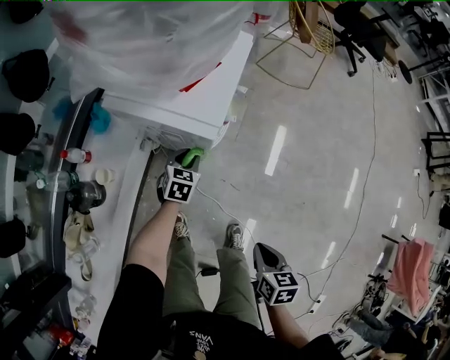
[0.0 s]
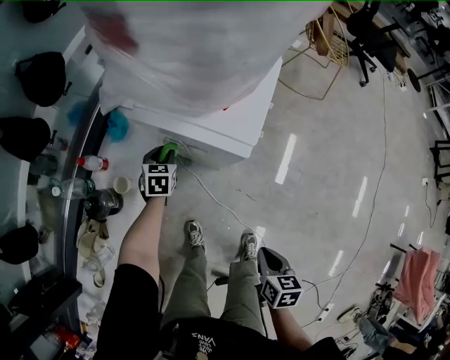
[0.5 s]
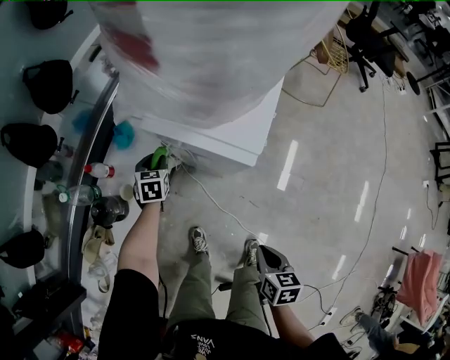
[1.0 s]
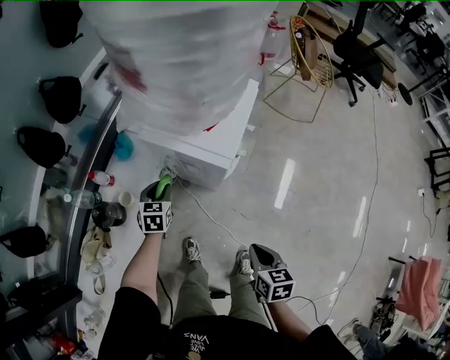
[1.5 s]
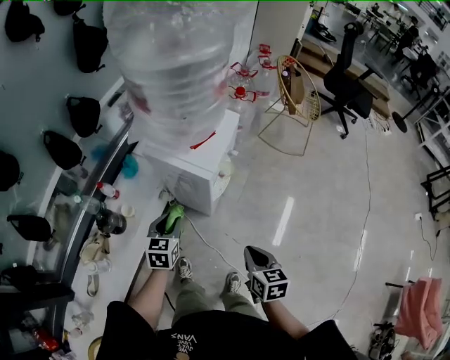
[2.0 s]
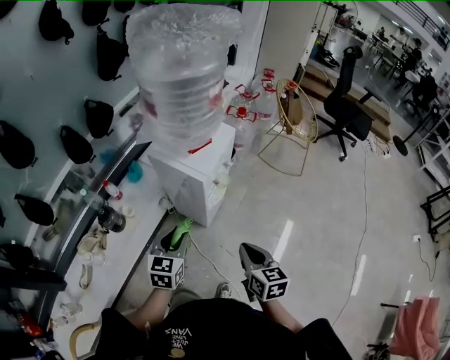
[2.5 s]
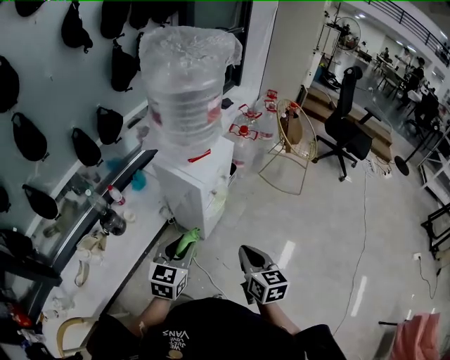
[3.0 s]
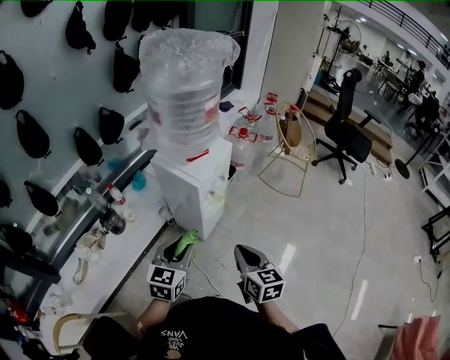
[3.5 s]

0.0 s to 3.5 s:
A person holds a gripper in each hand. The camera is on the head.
0.0 to 2.0 s: The right gripper is displaced upward and forward by approximately 15 cm, and swivels roughly 20 degrees, while the left gripper heads upward, backward and to the left, covering approximately 25 cm, and rotates approximately 20 degrees.
2.0 to 3.5 s: The right gripper heads upward, covering about 10 cm, and rotates about 20 degrees; the left gripper shifts about 25 cm backward, upward and to the right.

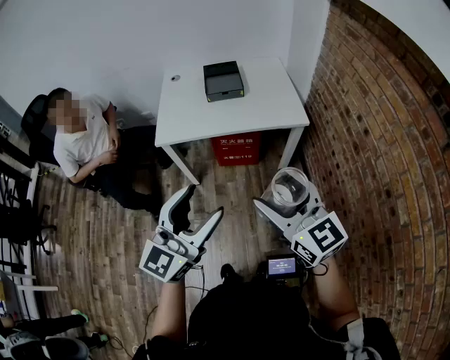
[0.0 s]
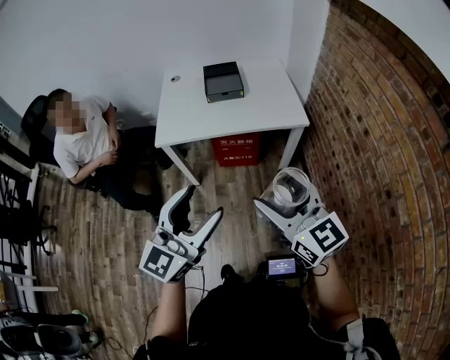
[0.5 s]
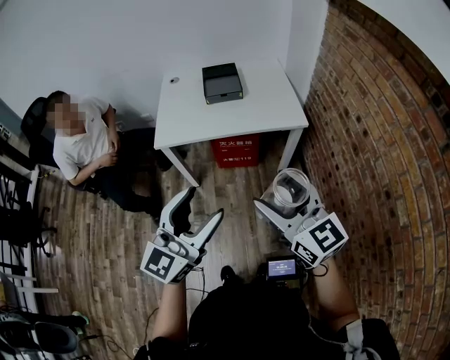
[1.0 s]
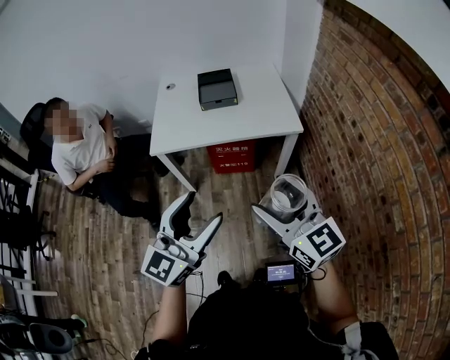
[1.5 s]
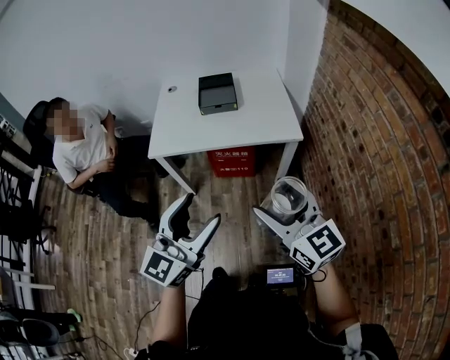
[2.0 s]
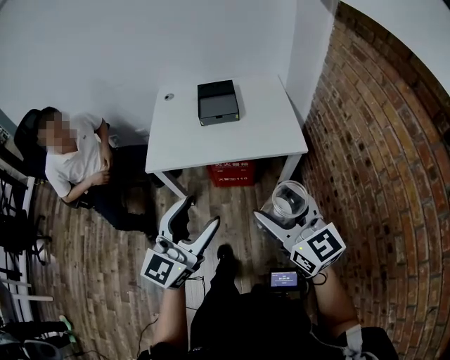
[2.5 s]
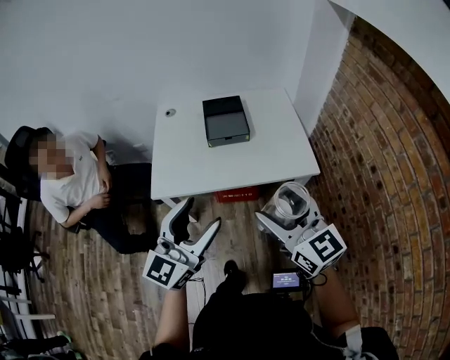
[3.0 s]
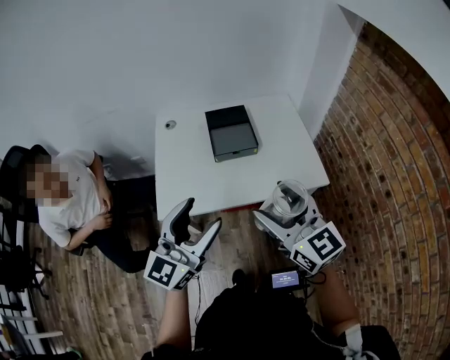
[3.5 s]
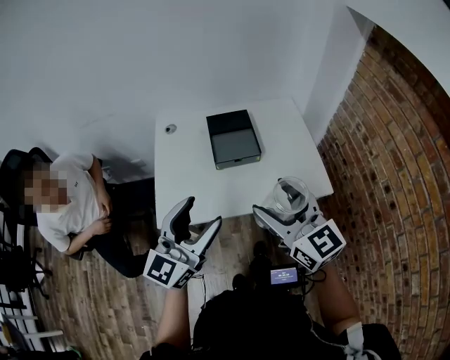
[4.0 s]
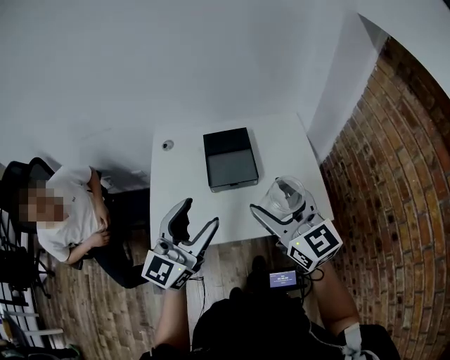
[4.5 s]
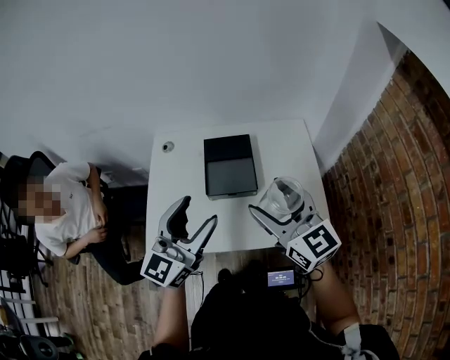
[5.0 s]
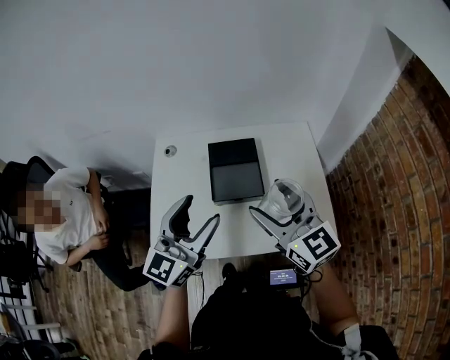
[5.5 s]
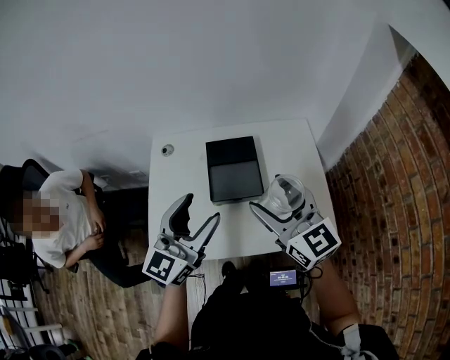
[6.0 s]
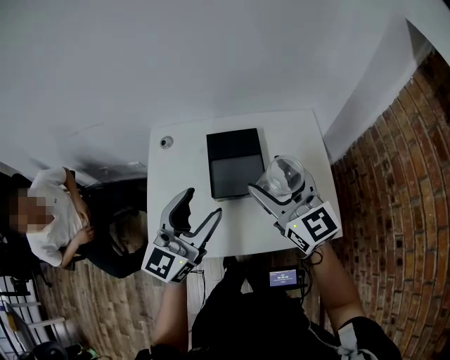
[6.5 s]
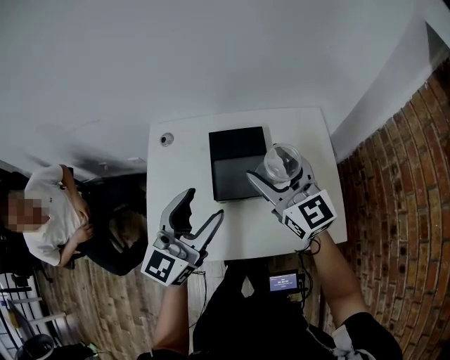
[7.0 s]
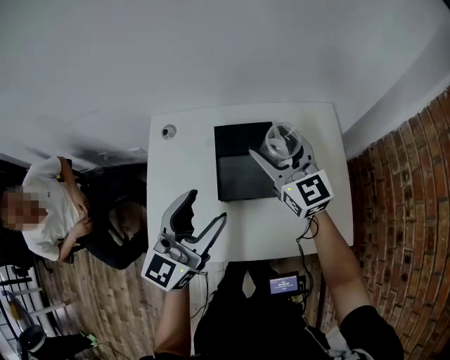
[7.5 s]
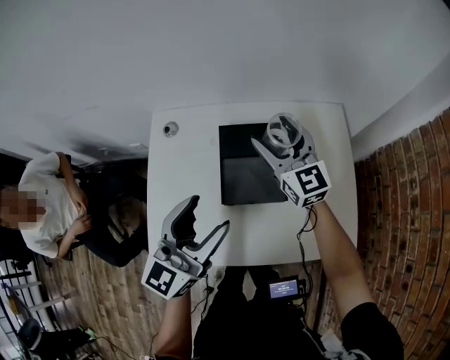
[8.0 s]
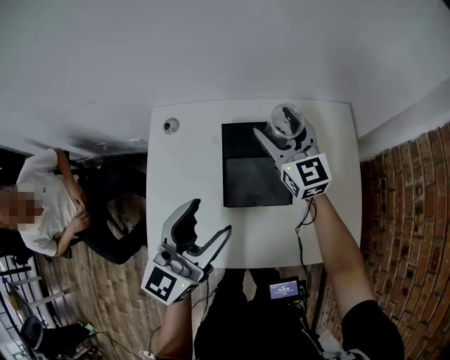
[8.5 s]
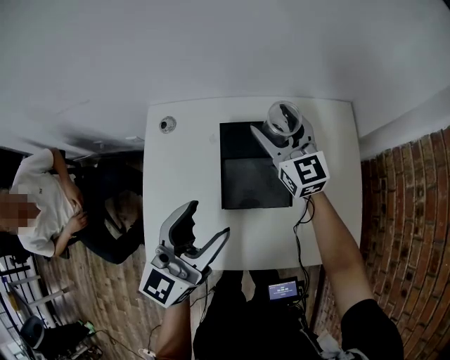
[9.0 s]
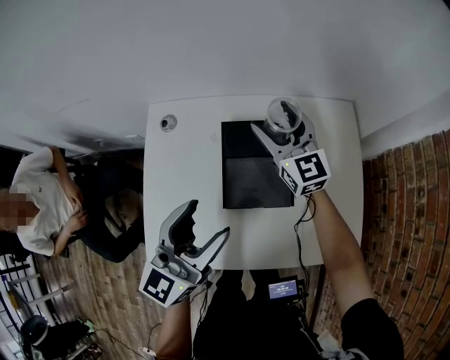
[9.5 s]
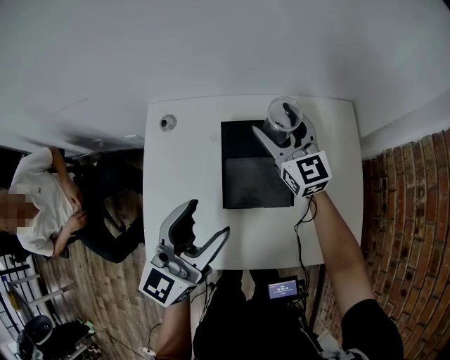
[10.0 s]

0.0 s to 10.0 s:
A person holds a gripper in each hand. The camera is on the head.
0.0 to 2.0 s: The two grippers go some 5 cm to the right.
2.0 to 4.0 s: The two grippers go some 35 cm forward and to the left.
4.0 to 6.0 s: The two grippers go about 20 cm forward.
6.0 to 8.0 s: The left gripper is displaced forward and downward by about 10 cm. The right gripper goes about 25 cm forward and downward.
8.0 to 10.0 s: The right gripper ends up roughly 5 cm from where it was.

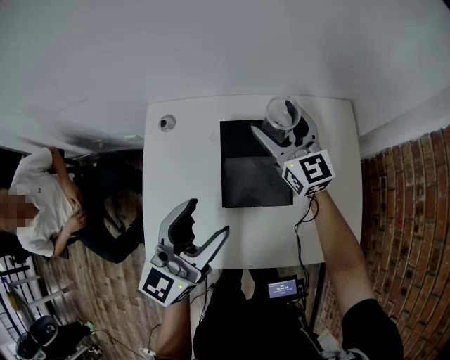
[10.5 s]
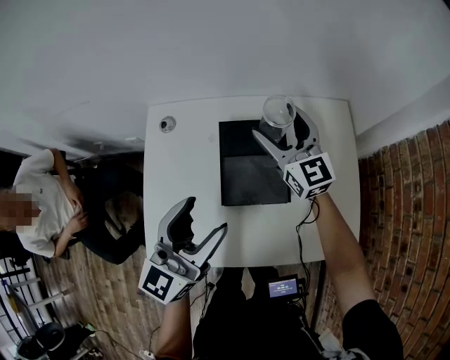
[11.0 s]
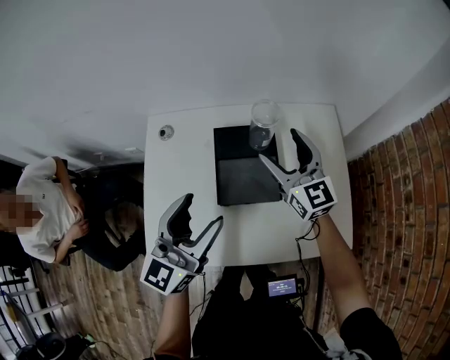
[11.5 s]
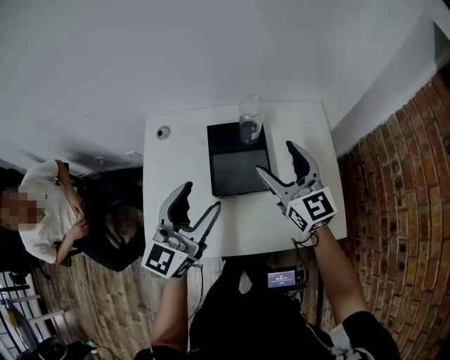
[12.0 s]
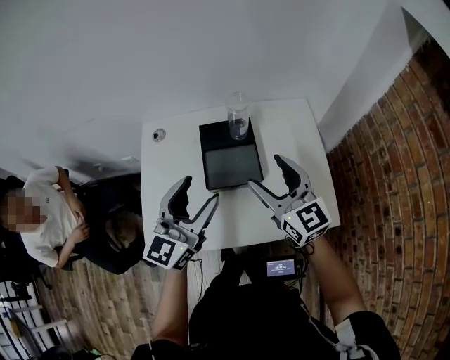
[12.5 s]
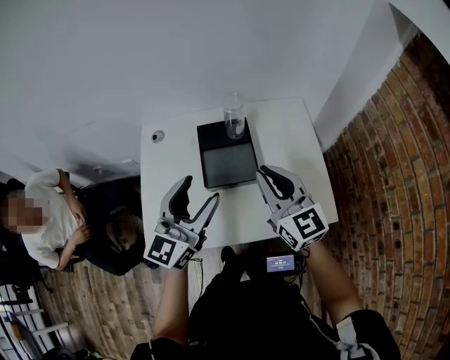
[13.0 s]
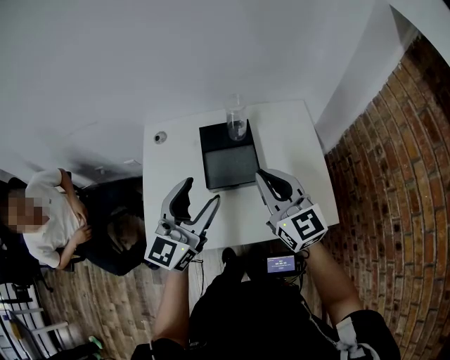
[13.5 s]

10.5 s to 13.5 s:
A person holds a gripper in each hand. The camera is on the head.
10.5 to 12.0 s: The right gripper shifts roughly 15 cm backward.
12.0 to 13.5 s: The right gripper heads backward, covering roughly 10 cm, and closes up.

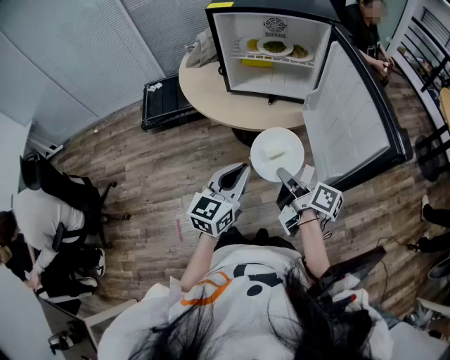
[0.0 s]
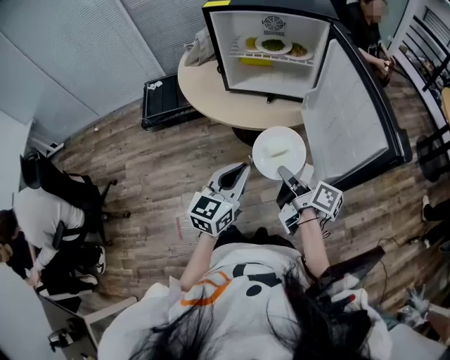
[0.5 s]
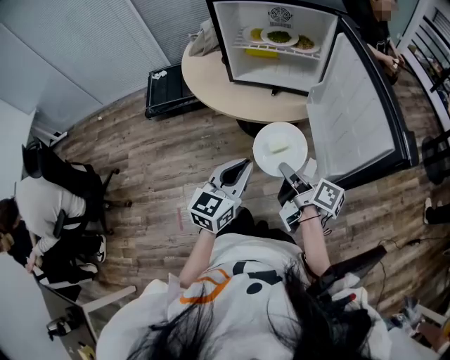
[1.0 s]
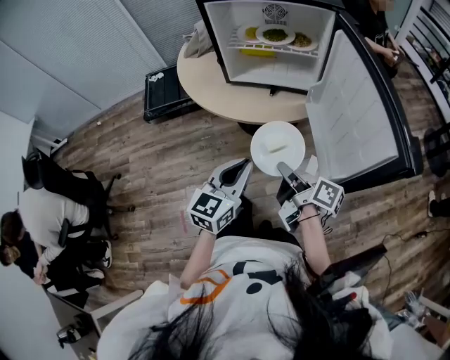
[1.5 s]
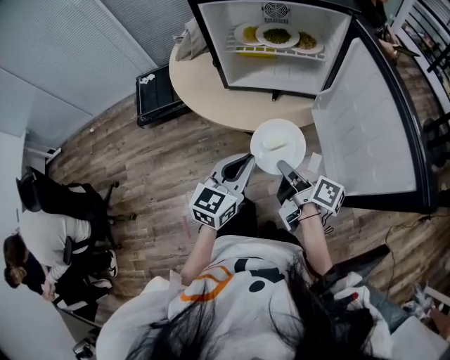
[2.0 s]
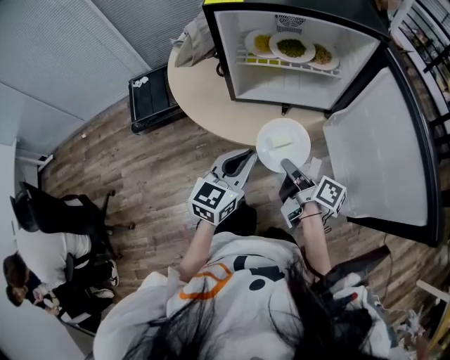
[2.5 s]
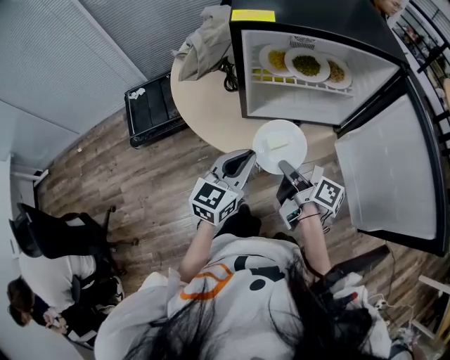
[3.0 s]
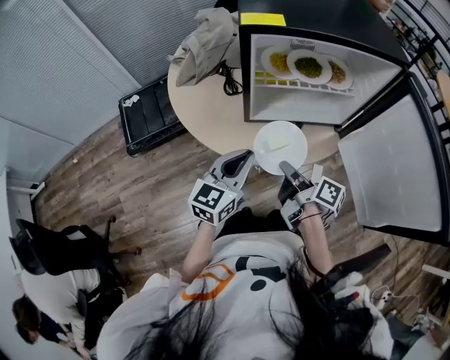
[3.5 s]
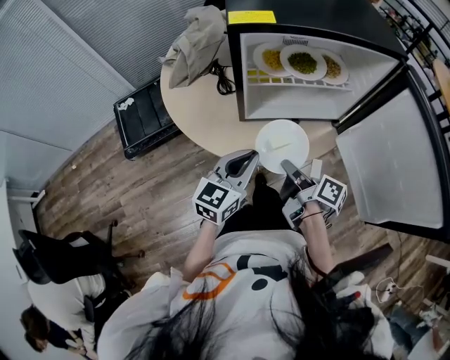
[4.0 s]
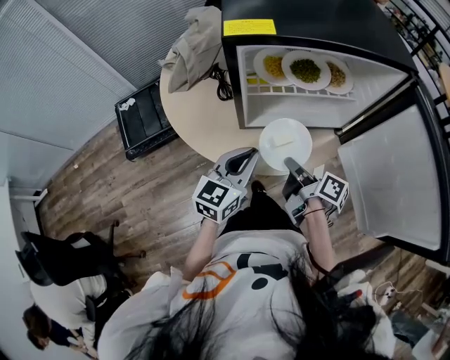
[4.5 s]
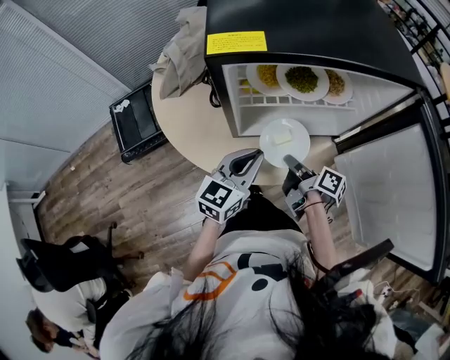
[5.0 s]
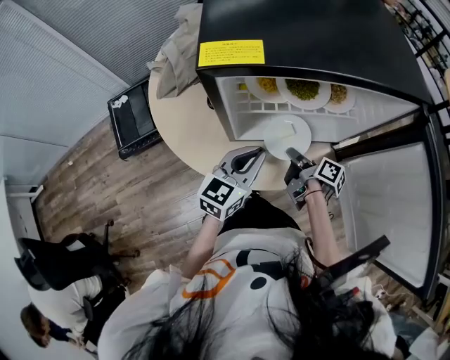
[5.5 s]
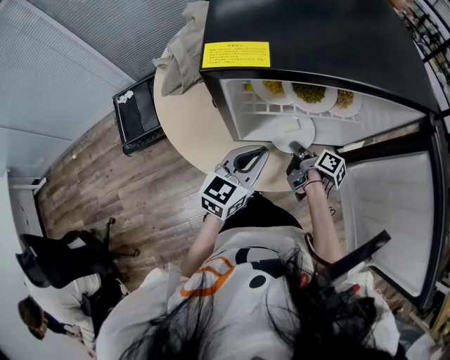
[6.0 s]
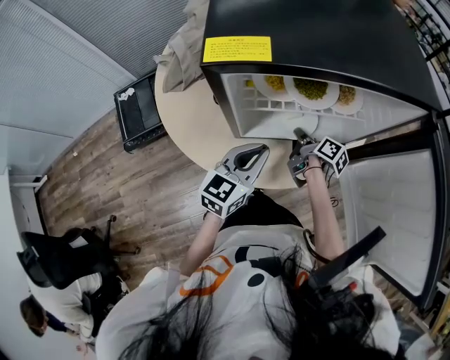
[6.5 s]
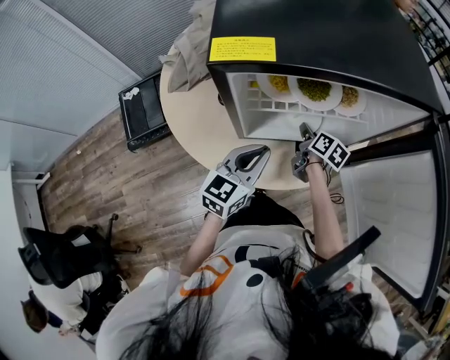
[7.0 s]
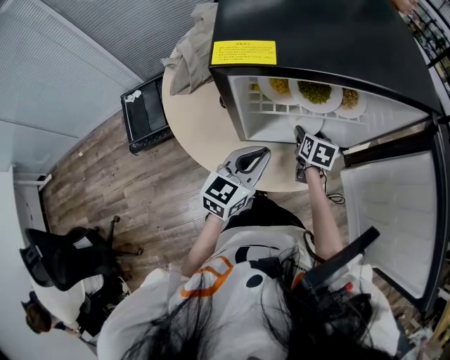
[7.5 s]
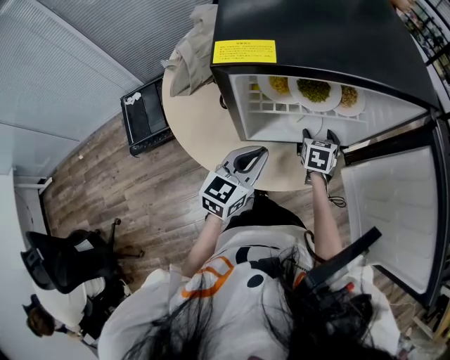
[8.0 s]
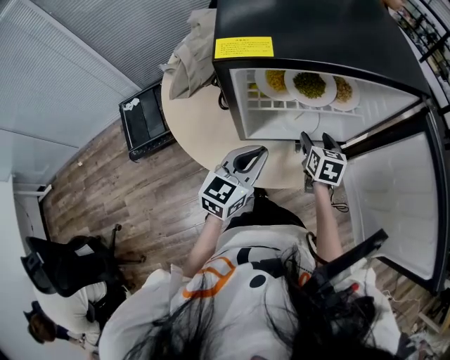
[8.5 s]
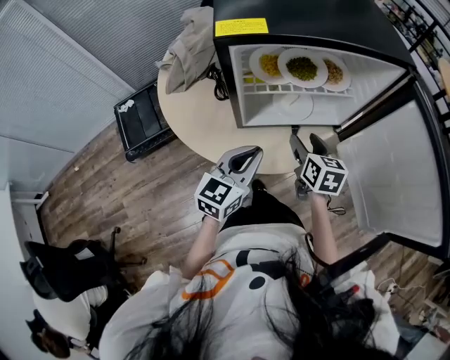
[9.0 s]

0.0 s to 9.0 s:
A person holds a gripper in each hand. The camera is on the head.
0.0 to 2.0 s: The two grippers go roughly 10 cm forward.
2.0 to 4.5 s: Both grippers move forward and to the left, some 20 cm.
4.5 to 7.0 s: The right gripper goes some 20 cm forward and downward, and rotates about 30 degrees. Meanwhile the left gripper shifts roughly 5 cm forward.
7.0 to 9.0 s: The right gripper travels backward and upward by roughly 15 cm, swivels approximately 30 degrees, and opens. The left gripper heads backward, covering approximately 5 cm.

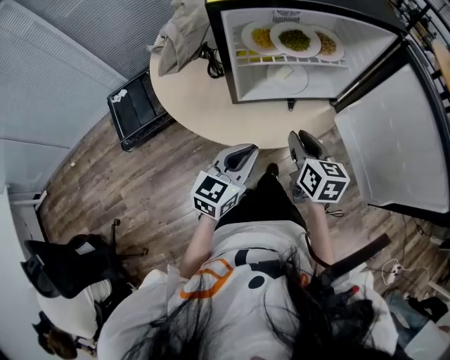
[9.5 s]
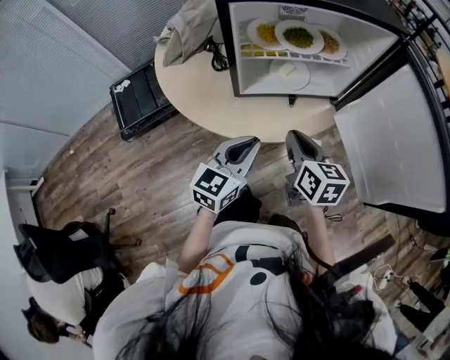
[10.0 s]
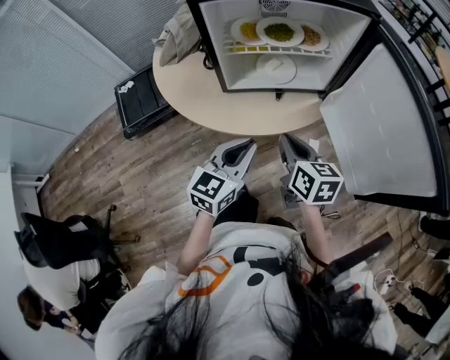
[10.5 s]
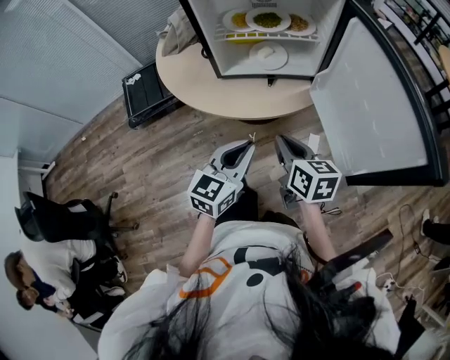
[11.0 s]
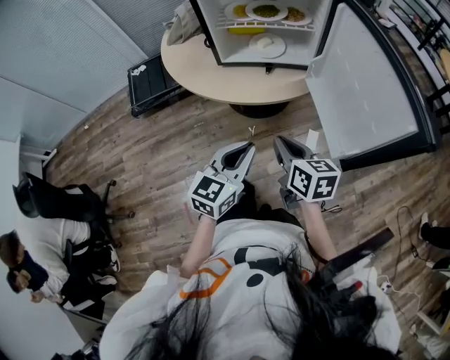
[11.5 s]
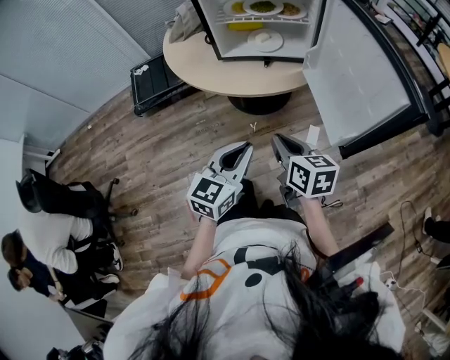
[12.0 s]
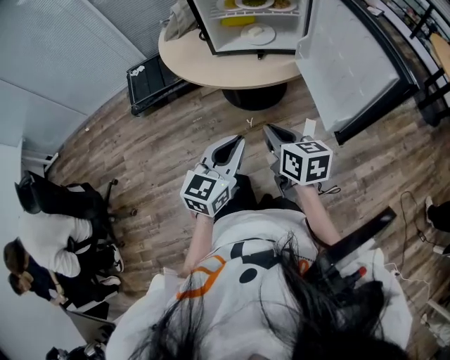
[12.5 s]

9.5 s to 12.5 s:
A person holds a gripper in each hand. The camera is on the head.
9.5 to 11.0 s: The right gripper shifts about 15 cm backward and to the right; the left gripper moves to the right and backward, about 15 cm.
11.0 to 12.5 s: The two grippers go about 15 cm backward.
